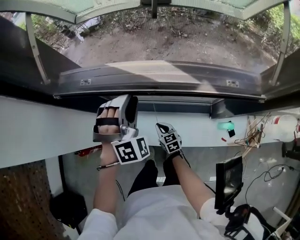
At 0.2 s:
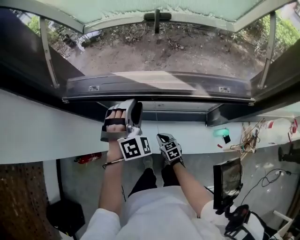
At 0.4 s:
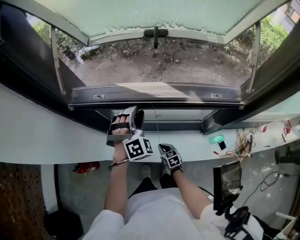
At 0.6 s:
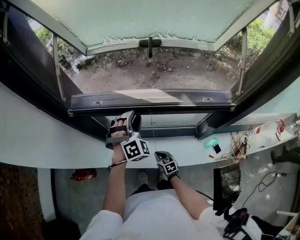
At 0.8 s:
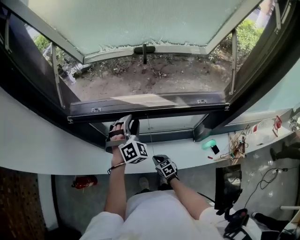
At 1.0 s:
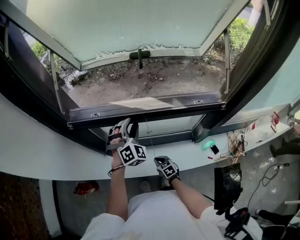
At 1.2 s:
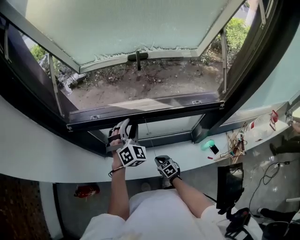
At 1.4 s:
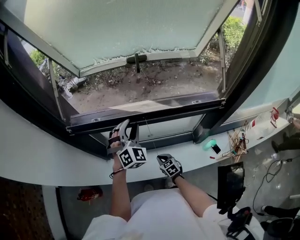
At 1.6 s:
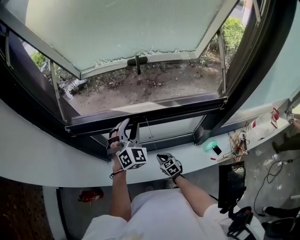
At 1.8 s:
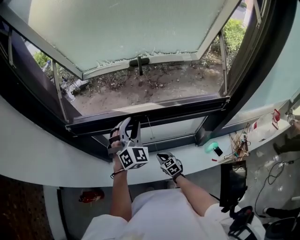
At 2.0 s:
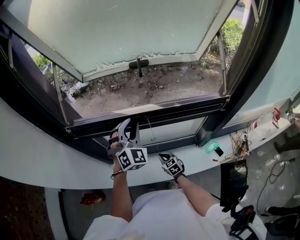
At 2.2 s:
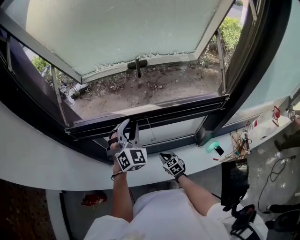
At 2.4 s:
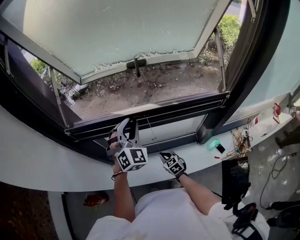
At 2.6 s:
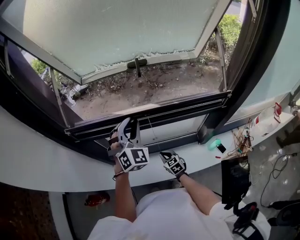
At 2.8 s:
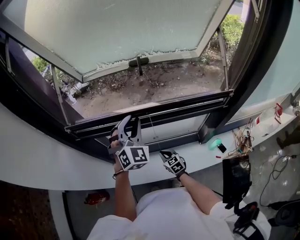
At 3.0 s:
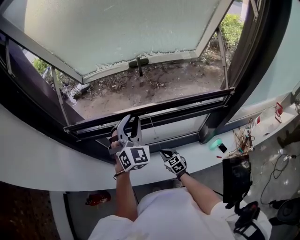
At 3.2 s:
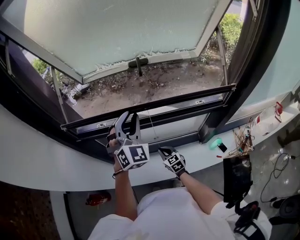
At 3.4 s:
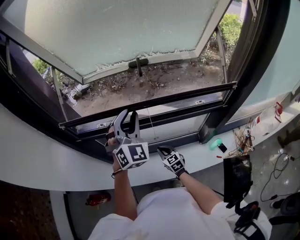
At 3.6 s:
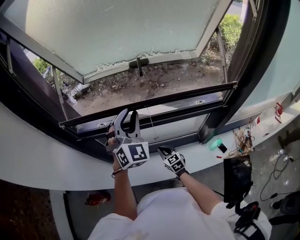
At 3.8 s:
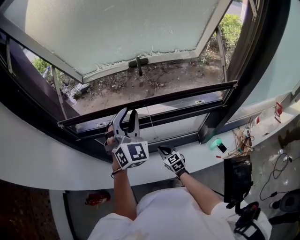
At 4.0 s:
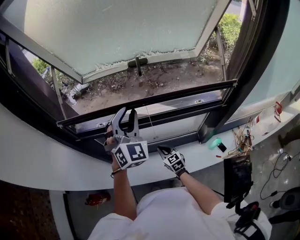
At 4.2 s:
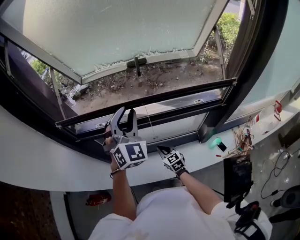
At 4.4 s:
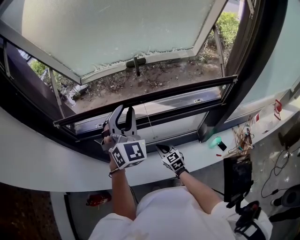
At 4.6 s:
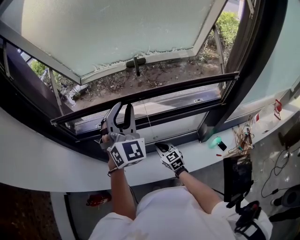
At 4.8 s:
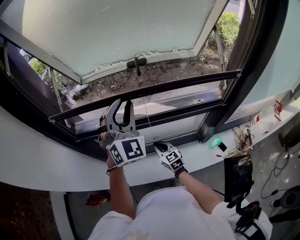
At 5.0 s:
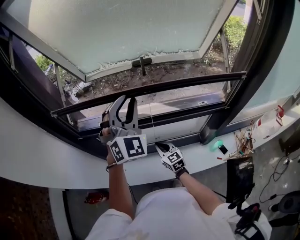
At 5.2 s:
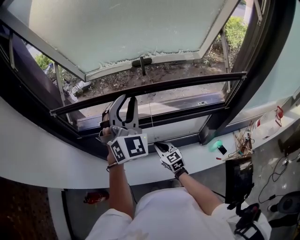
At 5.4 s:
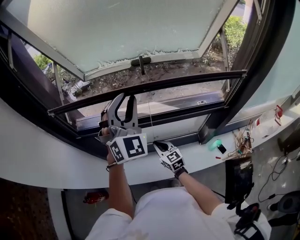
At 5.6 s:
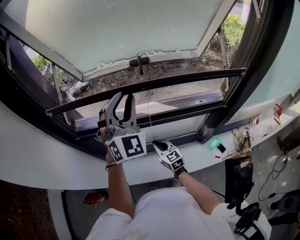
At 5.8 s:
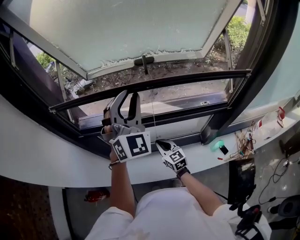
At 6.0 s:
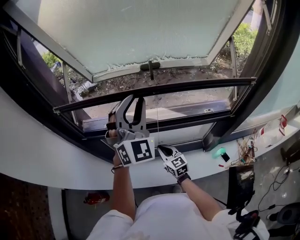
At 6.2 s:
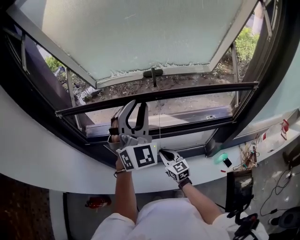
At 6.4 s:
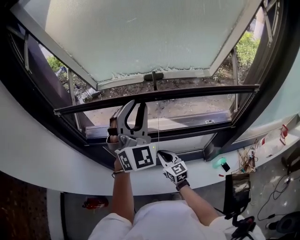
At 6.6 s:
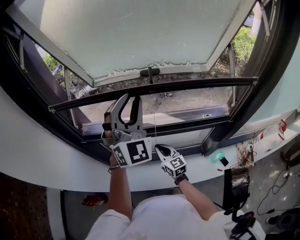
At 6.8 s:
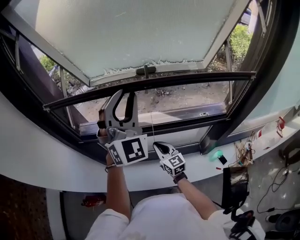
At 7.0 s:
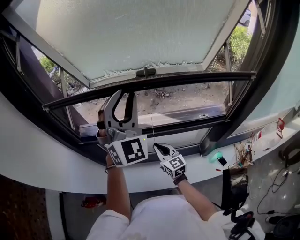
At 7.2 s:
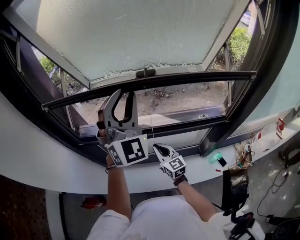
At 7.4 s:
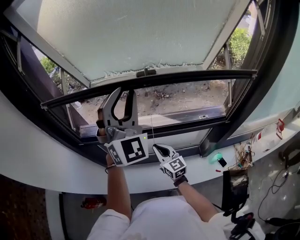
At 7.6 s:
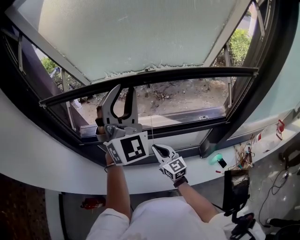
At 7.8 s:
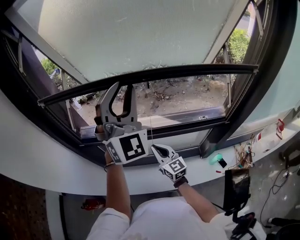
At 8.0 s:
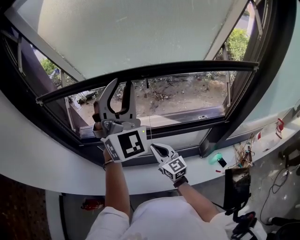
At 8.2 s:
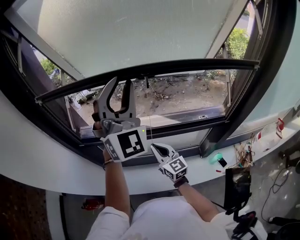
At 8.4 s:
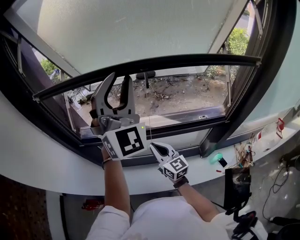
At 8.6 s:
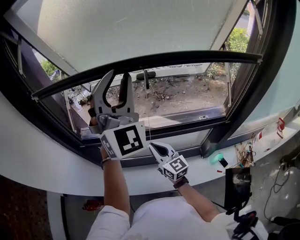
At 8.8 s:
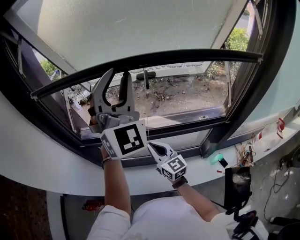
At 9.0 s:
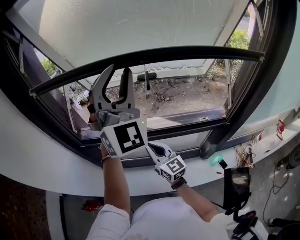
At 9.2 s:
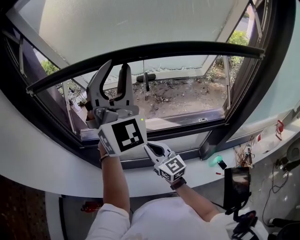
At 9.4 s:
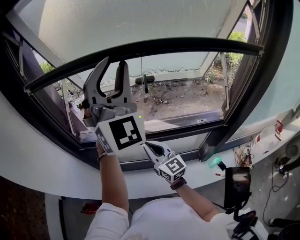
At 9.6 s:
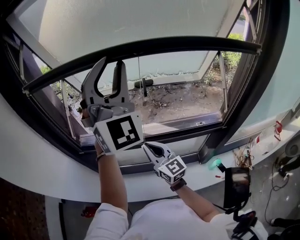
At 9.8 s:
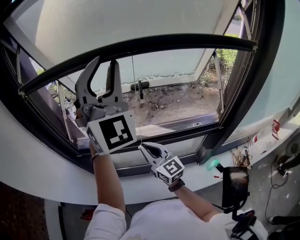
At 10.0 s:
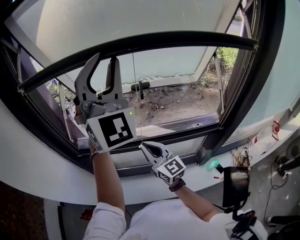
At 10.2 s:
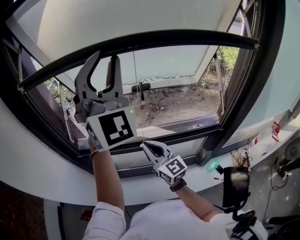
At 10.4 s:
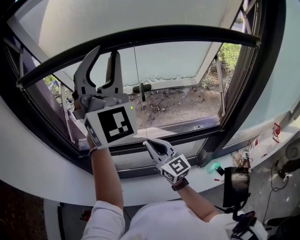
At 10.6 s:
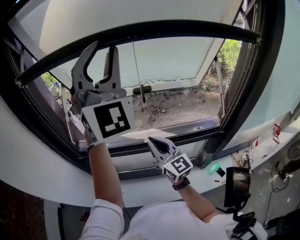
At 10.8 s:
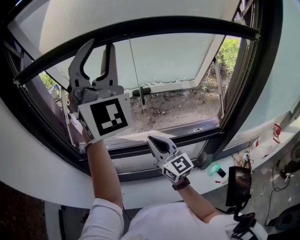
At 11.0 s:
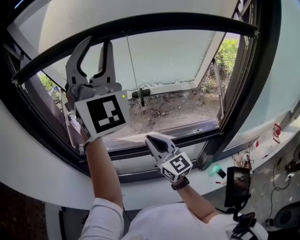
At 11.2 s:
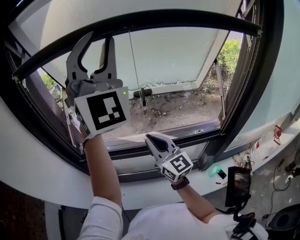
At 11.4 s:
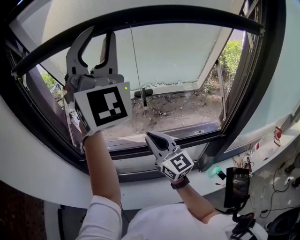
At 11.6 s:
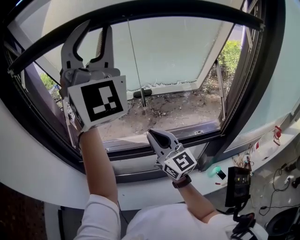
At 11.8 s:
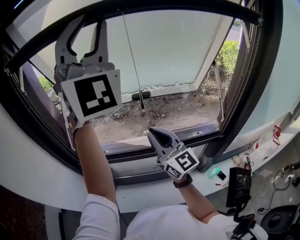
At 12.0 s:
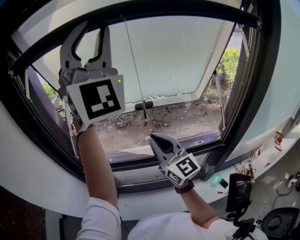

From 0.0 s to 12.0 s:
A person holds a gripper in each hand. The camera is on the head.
From 0.0 s to 1.6 s: The grippers both shift upward by about 5 cm. The left gripper turns by some 30 degrees.
From 1.6 s to 3.0 s: The left gripper goes roughly 5 cm upward.
From 3.0 s to 4.4 s: Both grippers move upward, approximately 5 cm.
From 4.4 s to 6.0 s: The two grippers go approximately 5 cm upward.
From 6.0 s to 7.6 s: Both grippers travel together upward, about 10 cm.
From 7.6 s to 9.0 s: Both grippers move upward, roughly 5 cm.
From 9.0 s to 10.4 s: Both grippers move upward, about 10 cm.
From 10.4 s to 12.0 s: The two grippers go approximately 10 cm upward.

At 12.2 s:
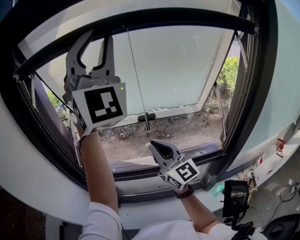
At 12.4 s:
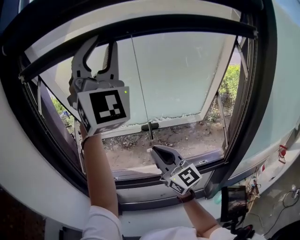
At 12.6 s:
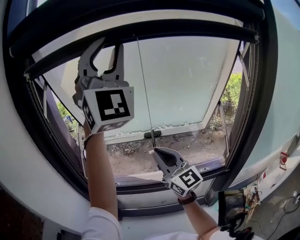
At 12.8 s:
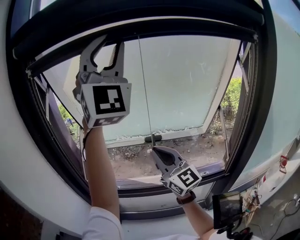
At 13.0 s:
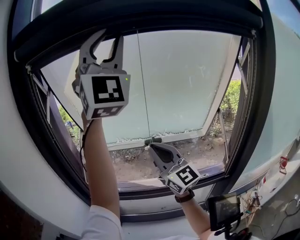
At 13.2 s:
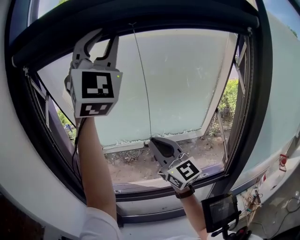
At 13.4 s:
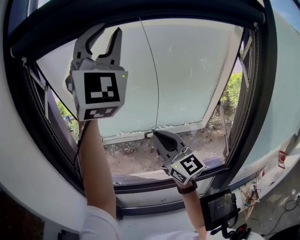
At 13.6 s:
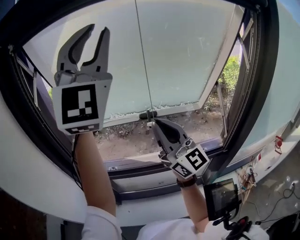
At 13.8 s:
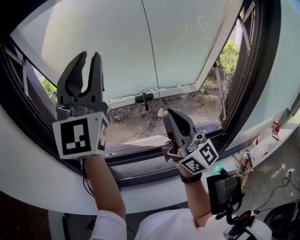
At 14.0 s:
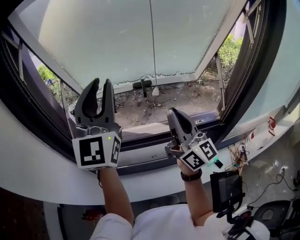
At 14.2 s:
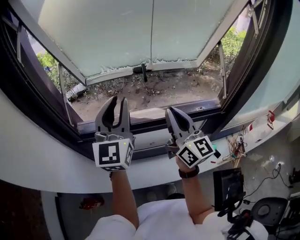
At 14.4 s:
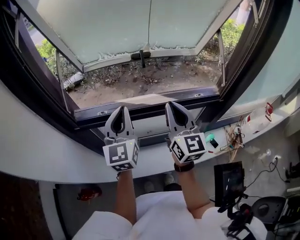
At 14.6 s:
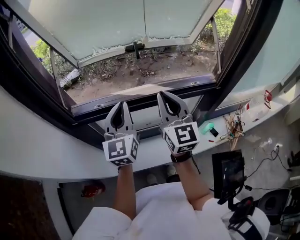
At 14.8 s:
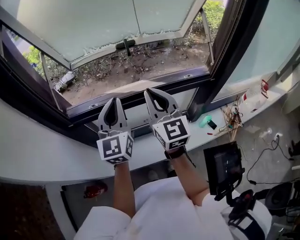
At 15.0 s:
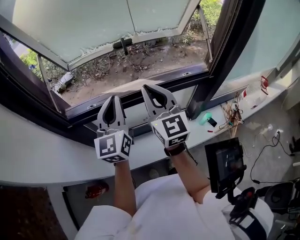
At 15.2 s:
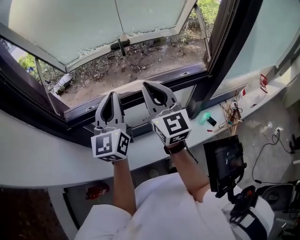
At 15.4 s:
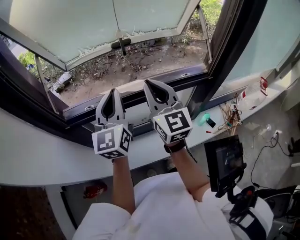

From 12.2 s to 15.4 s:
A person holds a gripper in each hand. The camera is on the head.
From 12.2 s to 13.8 s: The right gripper heads upward, covering about 10 cm, and turns by roughly 20 degrees. Meanwhile the left gripper goes roughly 10 cm downward and to the left, and turns by roughly 40 degrees.
From 13.8 s to 15.4 s: The right gripper is displaced downward by roughly 15 cm, and tips its fingers downward by about 30 degrees. The left gripper travels downward by about 35 cm, swivels about 40 degrees, and closes up.

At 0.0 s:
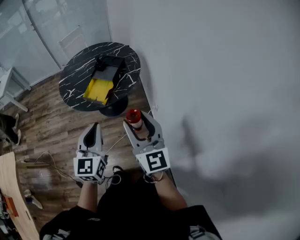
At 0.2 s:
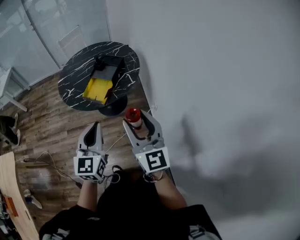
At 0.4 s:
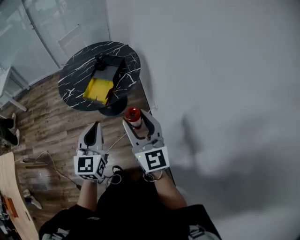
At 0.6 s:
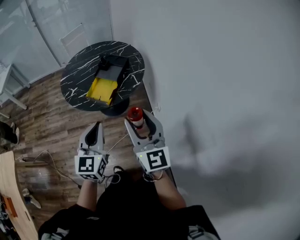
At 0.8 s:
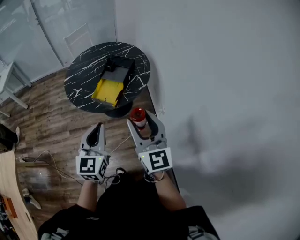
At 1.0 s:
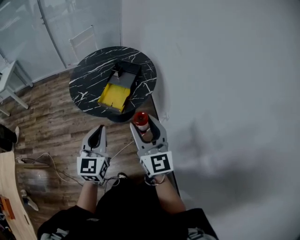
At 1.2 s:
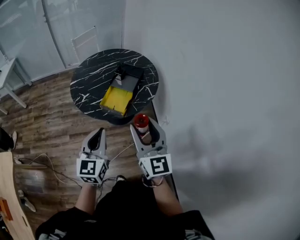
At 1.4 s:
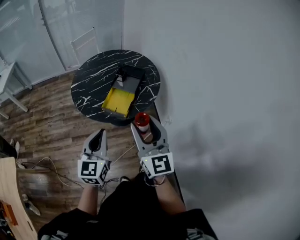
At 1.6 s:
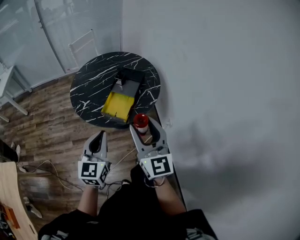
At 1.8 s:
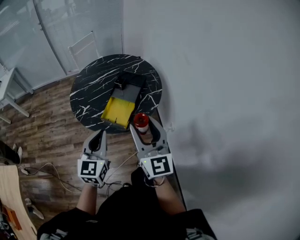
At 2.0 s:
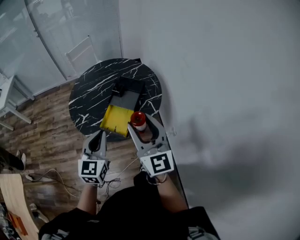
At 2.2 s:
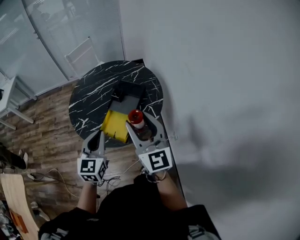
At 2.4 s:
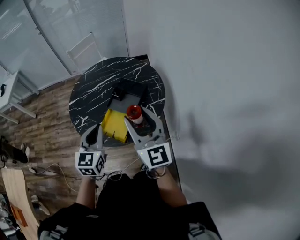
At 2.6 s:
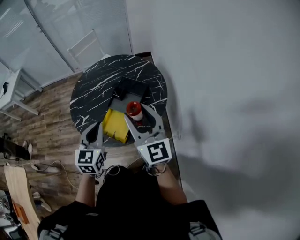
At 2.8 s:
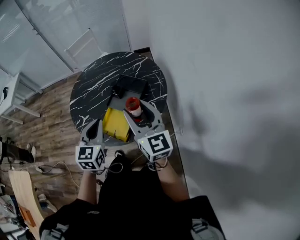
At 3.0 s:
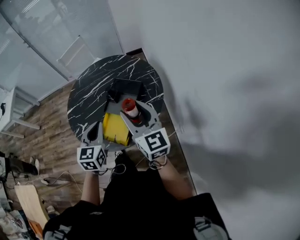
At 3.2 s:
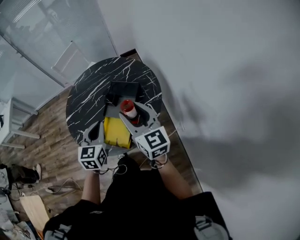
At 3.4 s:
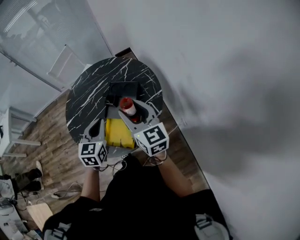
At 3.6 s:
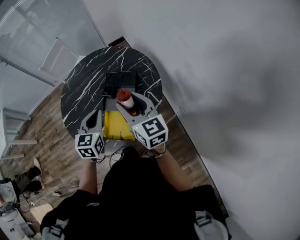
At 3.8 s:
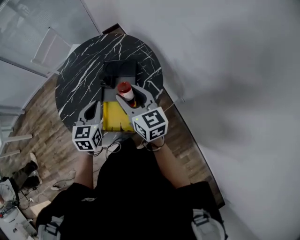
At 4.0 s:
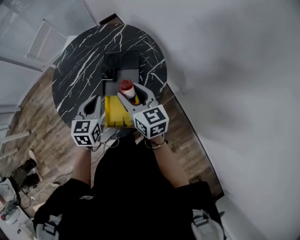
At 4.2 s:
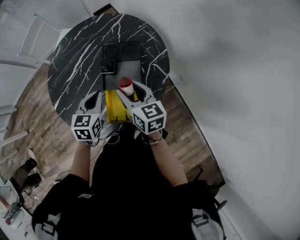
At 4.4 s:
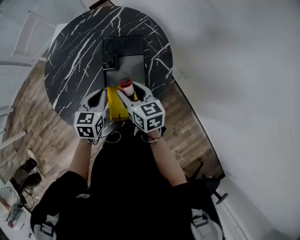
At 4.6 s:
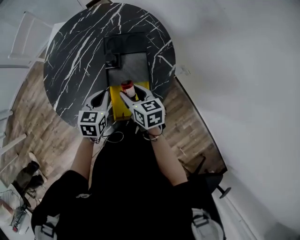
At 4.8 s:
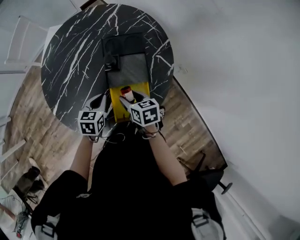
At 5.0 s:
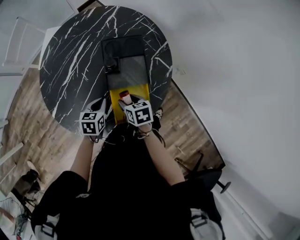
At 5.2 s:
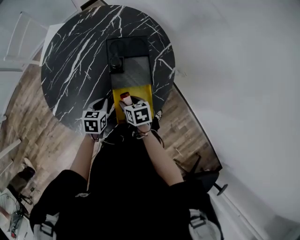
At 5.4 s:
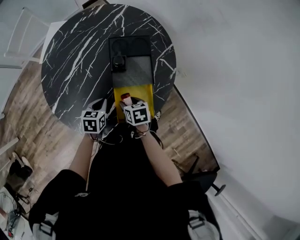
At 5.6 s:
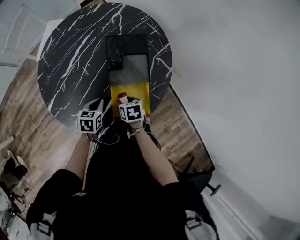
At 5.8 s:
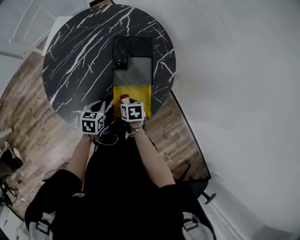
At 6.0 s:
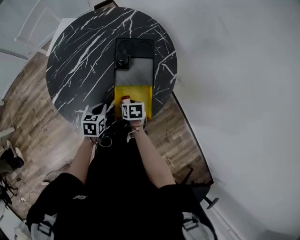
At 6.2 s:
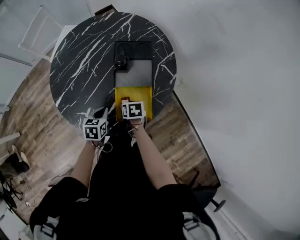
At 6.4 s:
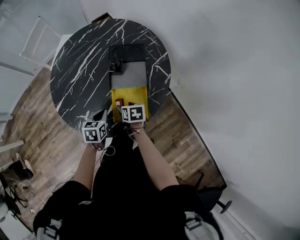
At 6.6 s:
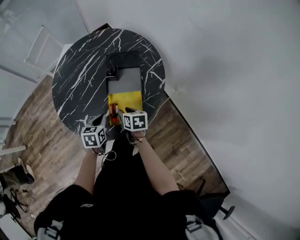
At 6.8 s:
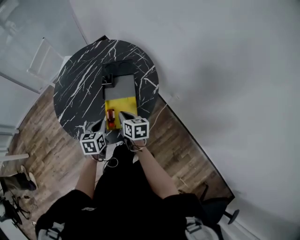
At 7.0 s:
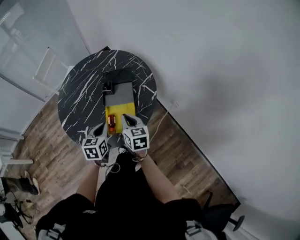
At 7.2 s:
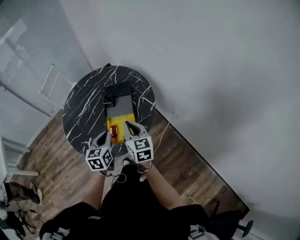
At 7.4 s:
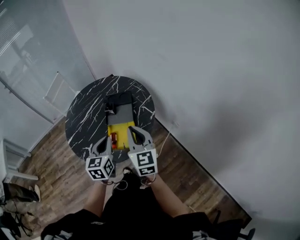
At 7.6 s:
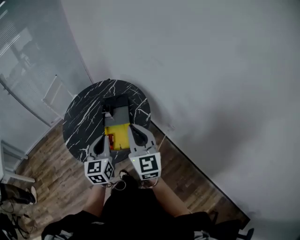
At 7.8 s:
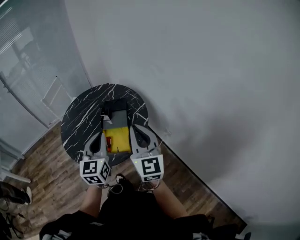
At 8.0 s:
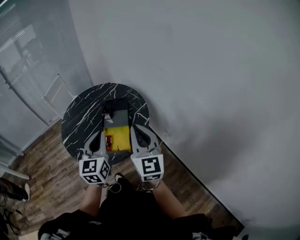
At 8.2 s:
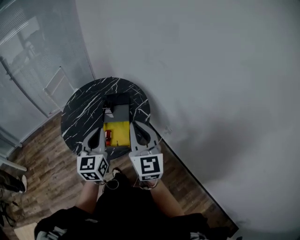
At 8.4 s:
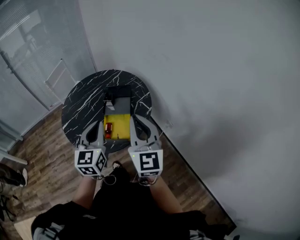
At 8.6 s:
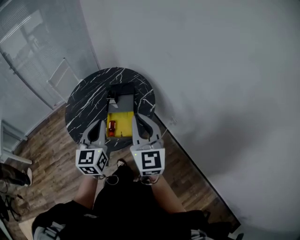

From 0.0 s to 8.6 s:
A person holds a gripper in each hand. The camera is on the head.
From 0.0 s to 1.4 s: The grippers both shift to the left and forward by about 20 cm.
From 1.4 s to 2.8 s: The two grippers go some 30 cm forward.
From 2.8 s to 4.4 s: The grippers both shift downward by about 20 cm. The left gripper swivels some 40 degrees. The right gripper points its fingers approximately 30 degrees further downward.
From 4.4 s to 5.8 s: The left gripper shifts some 15 cm downward, to the left and backward, while the right gripper moves downward, some 15 cm, and tips its fingers downward by about 40 degrees.
From 5.8 s to 7.2 s: The right gripper heads upward, covering roughly 30 cm, tilts its fingers approximately 50 degrees upward, and closes up. The left gripper shifts some 25 cm upward, to the right and backward, and changes its angle by roughly 30 degrees.
From 7.2 s to 8.6 s: Both grippers move upward and backward, approximately 20 cm. The right gripper rotates approximately 30 degrees. The left gripper changes its angle by approximately 20 degrees.
